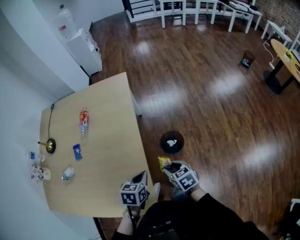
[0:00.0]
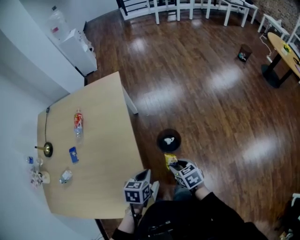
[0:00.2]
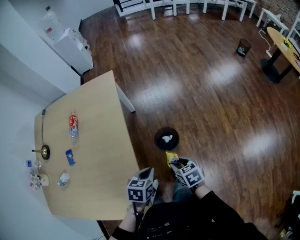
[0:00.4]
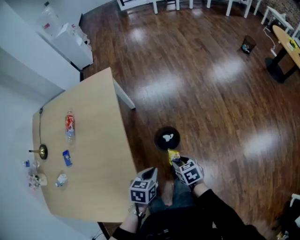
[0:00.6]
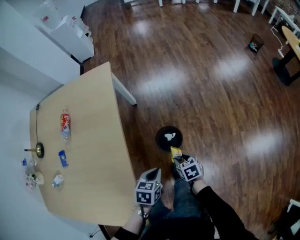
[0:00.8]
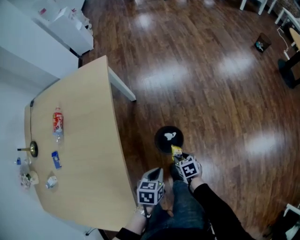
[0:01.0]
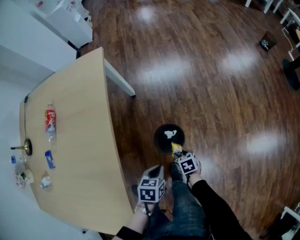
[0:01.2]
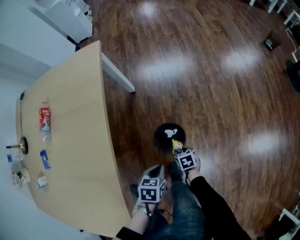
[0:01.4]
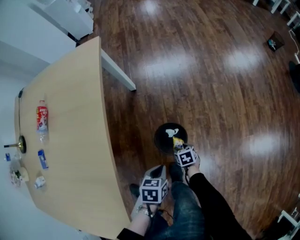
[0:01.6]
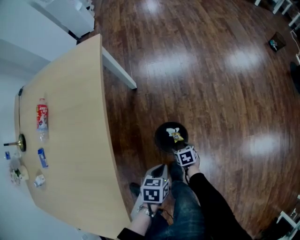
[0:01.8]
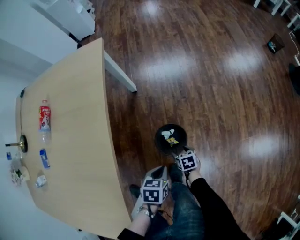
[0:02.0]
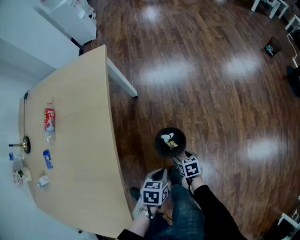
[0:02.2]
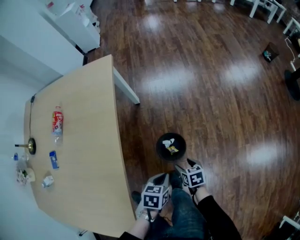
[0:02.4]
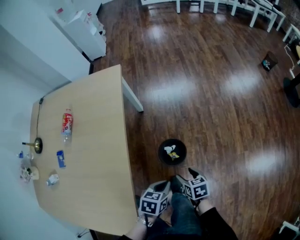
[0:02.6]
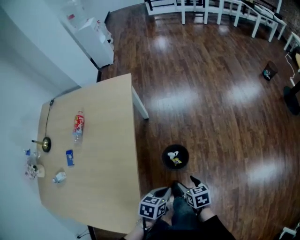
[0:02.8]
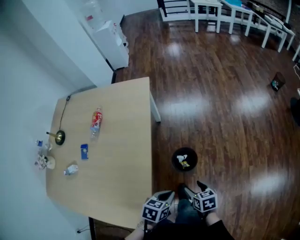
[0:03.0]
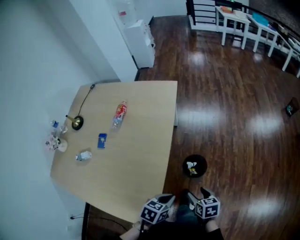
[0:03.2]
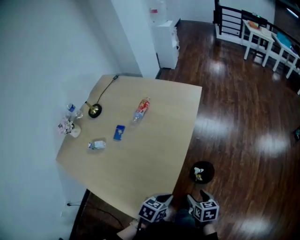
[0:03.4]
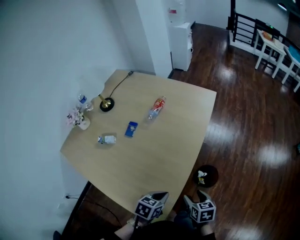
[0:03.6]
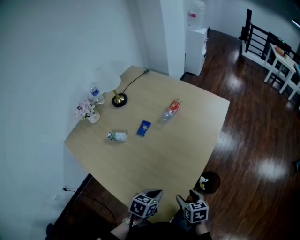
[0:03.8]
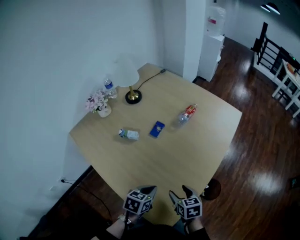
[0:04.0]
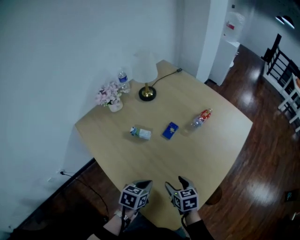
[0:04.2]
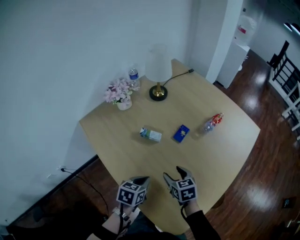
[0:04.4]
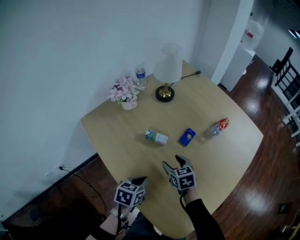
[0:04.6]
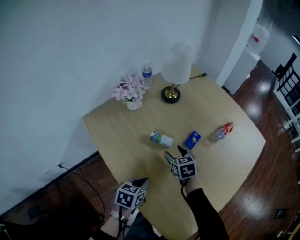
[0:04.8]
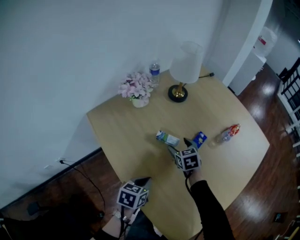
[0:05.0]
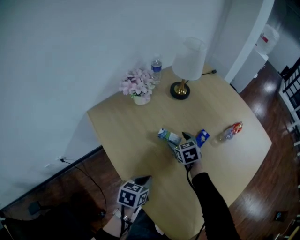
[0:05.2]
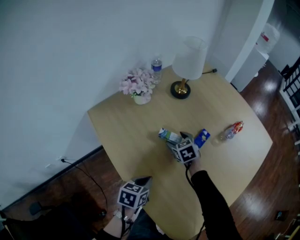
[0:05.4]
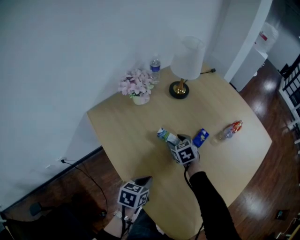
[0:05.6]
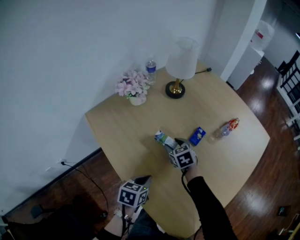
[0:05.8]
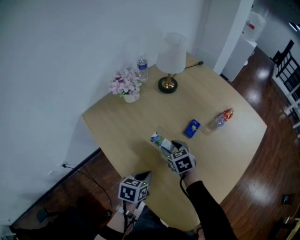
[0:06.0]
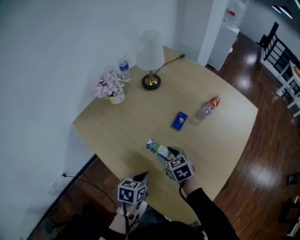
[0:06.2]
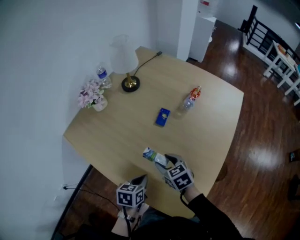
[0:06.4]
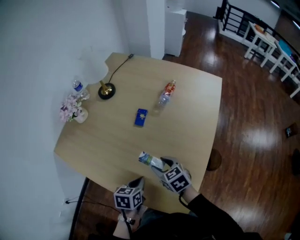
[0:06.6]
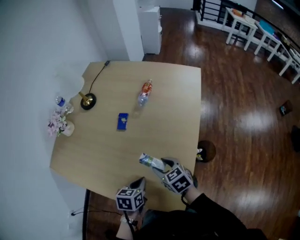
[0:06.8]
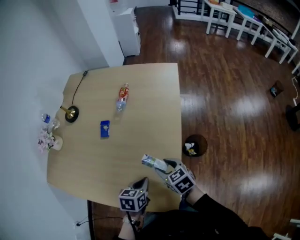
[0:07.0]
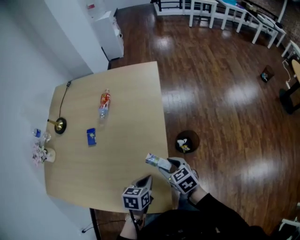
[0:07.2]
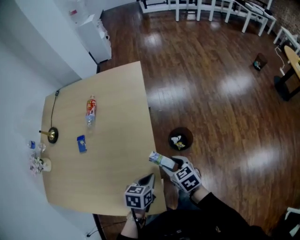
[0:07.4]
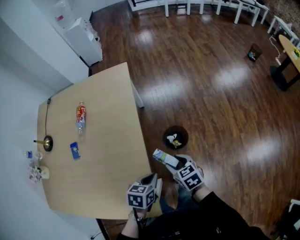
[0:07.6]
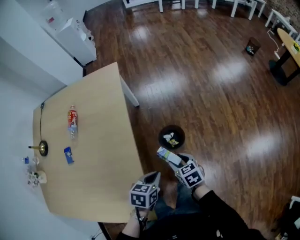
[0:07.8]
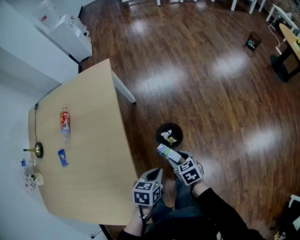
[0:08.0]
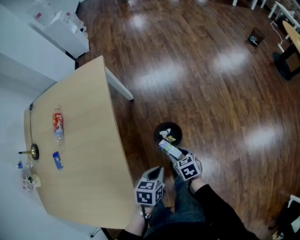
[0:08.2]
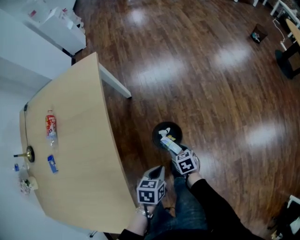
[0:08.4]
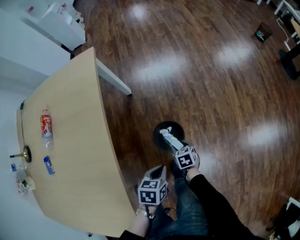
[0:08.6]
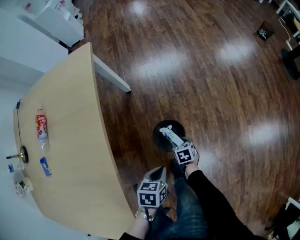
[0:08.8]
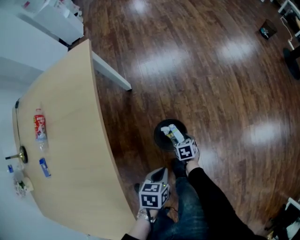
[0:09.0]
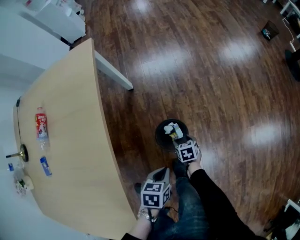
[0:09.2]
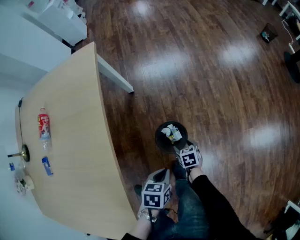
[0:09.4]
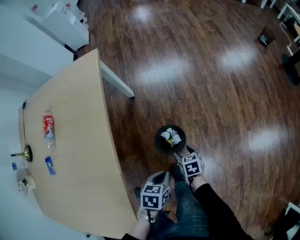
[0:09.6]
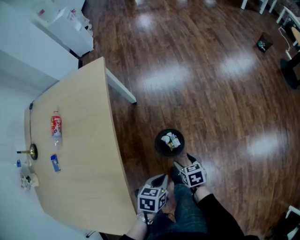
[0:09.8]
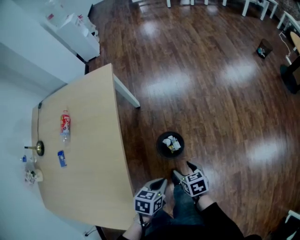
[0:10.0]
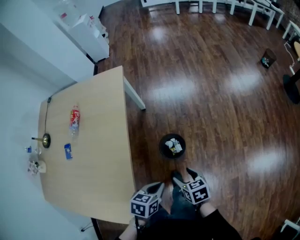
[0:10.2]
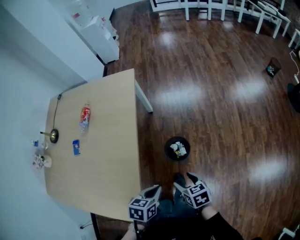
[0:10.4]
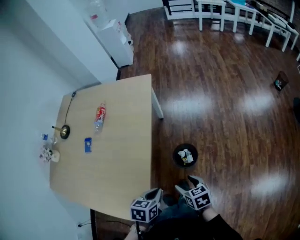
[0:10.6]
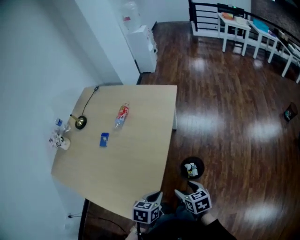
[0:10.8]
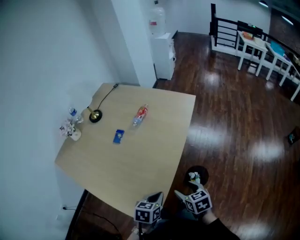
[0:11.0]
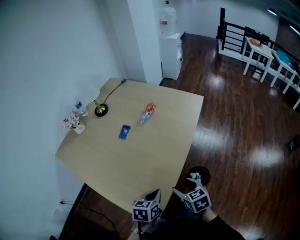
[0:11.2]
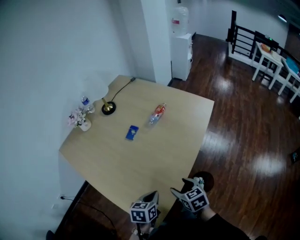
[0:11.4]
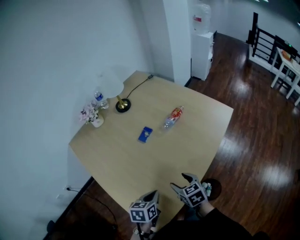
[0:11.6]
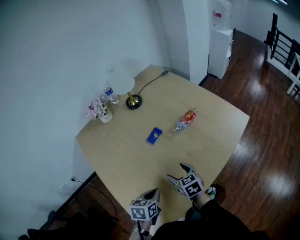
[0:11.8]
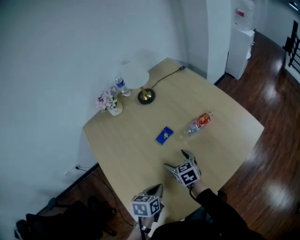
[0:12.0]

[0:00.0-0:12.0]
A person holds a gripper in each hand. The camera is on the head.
0:00.0 to 0:01.6: The left gripper travels downward, to the right and forward by some 30 cm. The right gripper moves downward, approximately 40 cm, and swivels roughly 20 degrees.
0:01.6 to 0:03.0: The right gripper travels upward by some 35 cm; the left gripper heads upward and backward, covering about 25 cm.
0:03.0 to 0:04.4: The two grippers travel together, some 50 cm. The right gripper rotates around the line of its fingers by approximately 50 degrees, counterclockwise from behind. Meanwhile the left gripper turns by roughly 50 degrees.
0:04.4 to 0:06.0: The left gripper goes approximately 5 cm to the left. The right gripper is displaced forward and to the left by about 15 cm.
0:06.0 to 0:07.6: The pair of grippers is taken about 50 cm. The right gripper rolls clockwise, seen from behind, by roughly 50 degrees, while the left gripper turns by approximately 50 degrees.
0:07.6 to 0:09.0: The left gripper is displaced downward, to the right and forward by some 25 cm. The right gripper travels downward by about 40 cm, and changes its angle by about 30 degrees.
0:09.0 to 0:10.4: The left gripper heads upward and backward, covering some 25 cm; the right gripper is displaced upward and backward by approximately 40 cm, and rotates some 20 degrees.
0:10.4 to 0:12.0: The right gripper shifts by about 50 cm, and rolls counterclockwise, seen from behind, by roughly 50 degrees; the left gripper moves approximately 35 cm, and changes its angle by approximately 60 degrees.

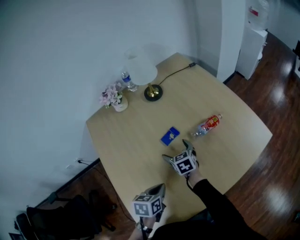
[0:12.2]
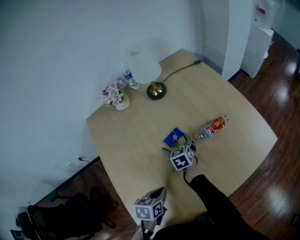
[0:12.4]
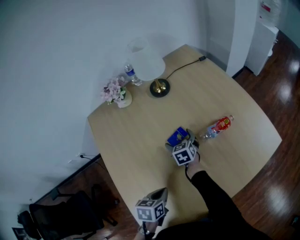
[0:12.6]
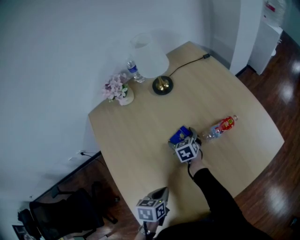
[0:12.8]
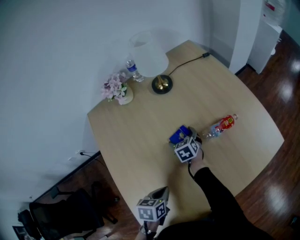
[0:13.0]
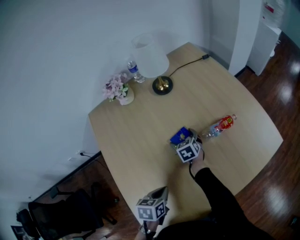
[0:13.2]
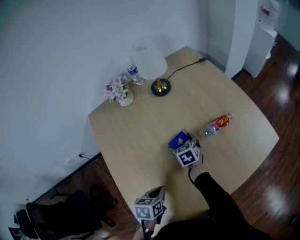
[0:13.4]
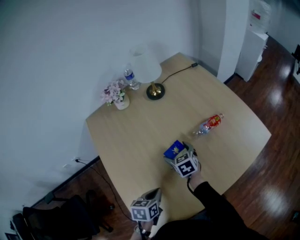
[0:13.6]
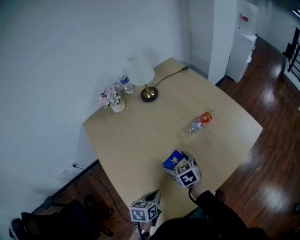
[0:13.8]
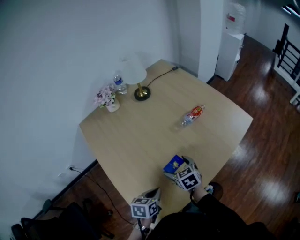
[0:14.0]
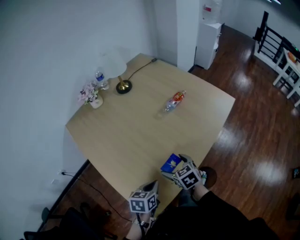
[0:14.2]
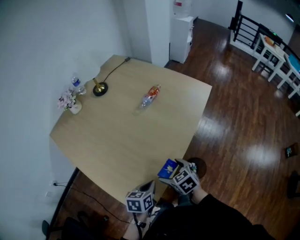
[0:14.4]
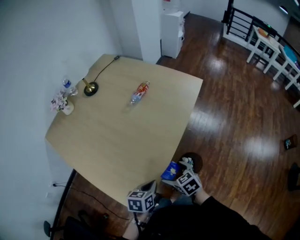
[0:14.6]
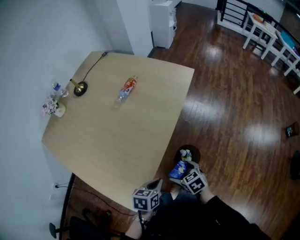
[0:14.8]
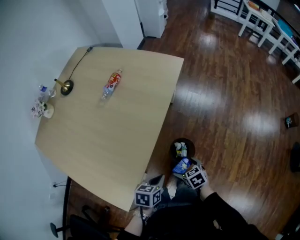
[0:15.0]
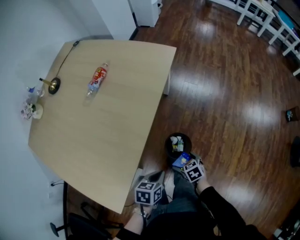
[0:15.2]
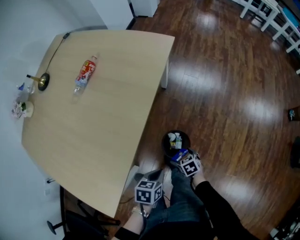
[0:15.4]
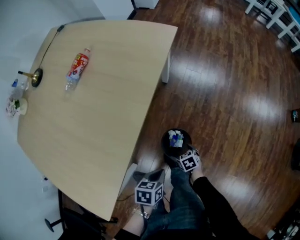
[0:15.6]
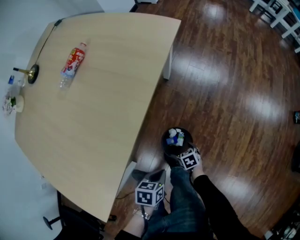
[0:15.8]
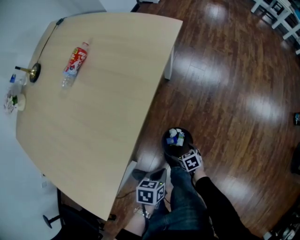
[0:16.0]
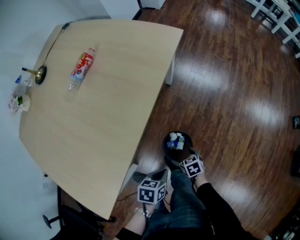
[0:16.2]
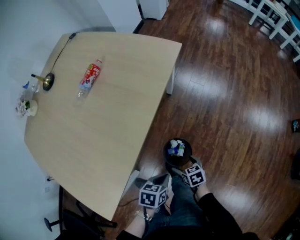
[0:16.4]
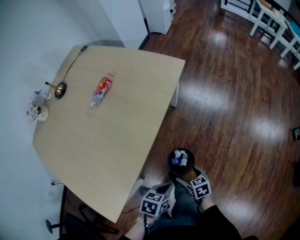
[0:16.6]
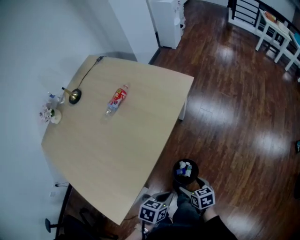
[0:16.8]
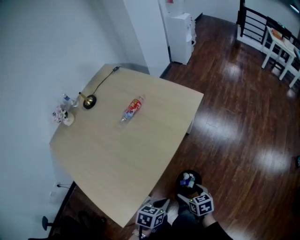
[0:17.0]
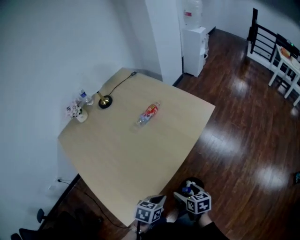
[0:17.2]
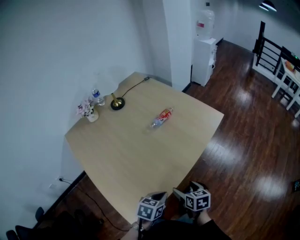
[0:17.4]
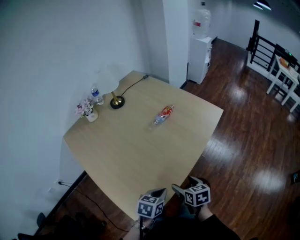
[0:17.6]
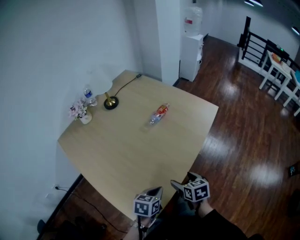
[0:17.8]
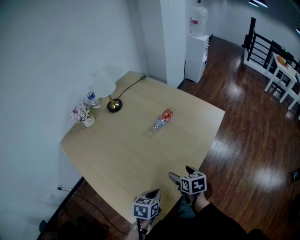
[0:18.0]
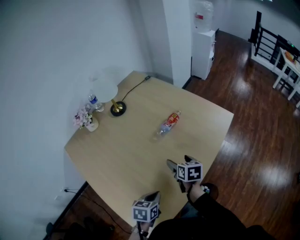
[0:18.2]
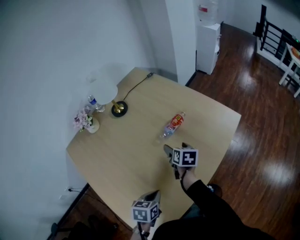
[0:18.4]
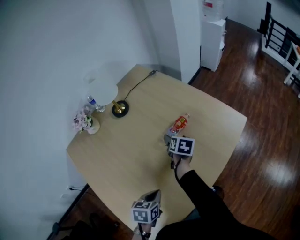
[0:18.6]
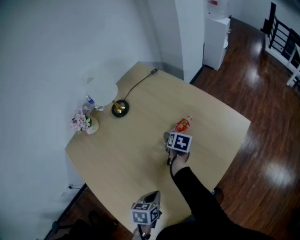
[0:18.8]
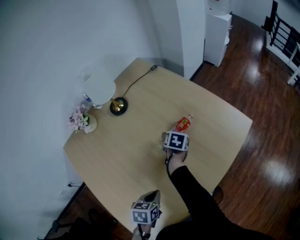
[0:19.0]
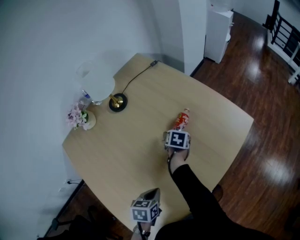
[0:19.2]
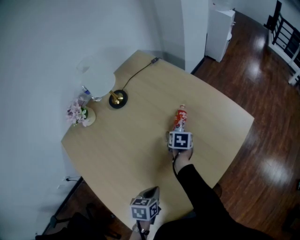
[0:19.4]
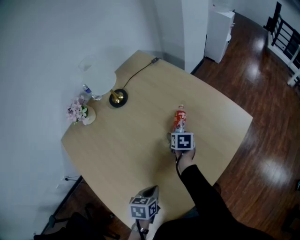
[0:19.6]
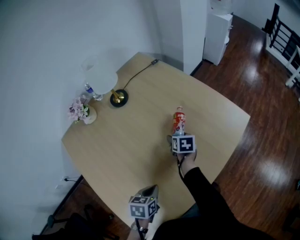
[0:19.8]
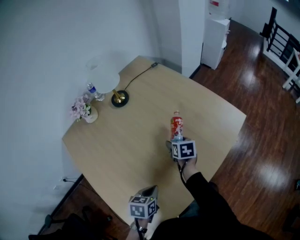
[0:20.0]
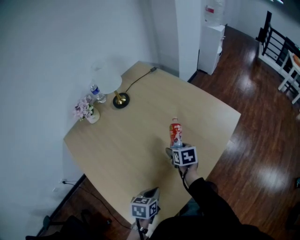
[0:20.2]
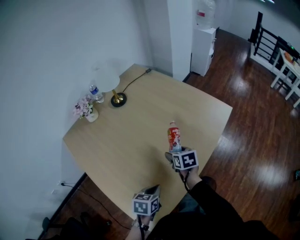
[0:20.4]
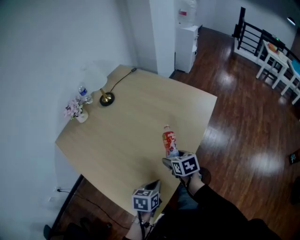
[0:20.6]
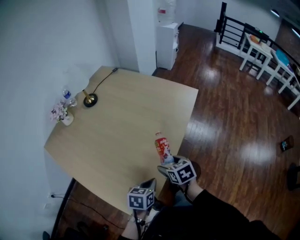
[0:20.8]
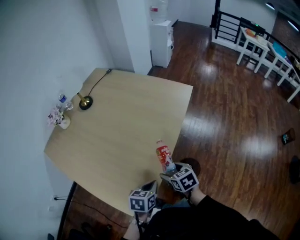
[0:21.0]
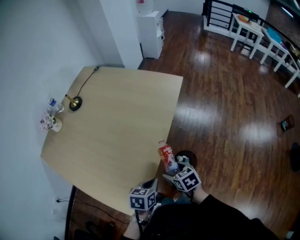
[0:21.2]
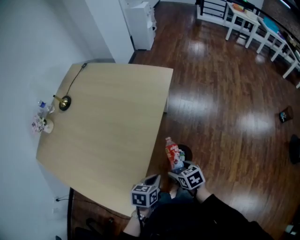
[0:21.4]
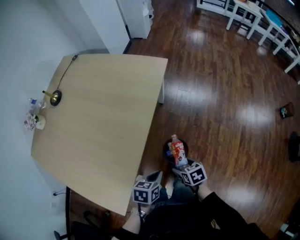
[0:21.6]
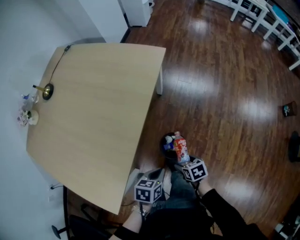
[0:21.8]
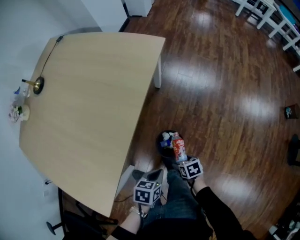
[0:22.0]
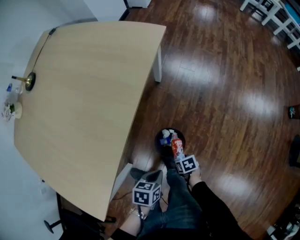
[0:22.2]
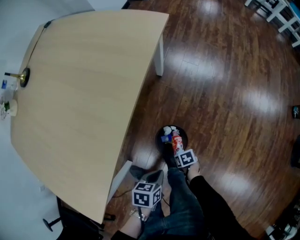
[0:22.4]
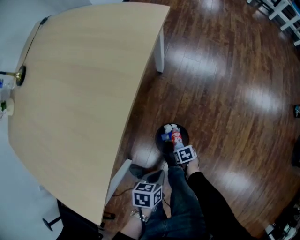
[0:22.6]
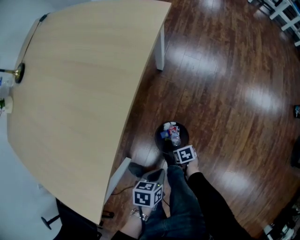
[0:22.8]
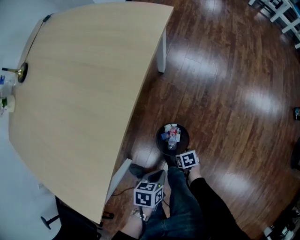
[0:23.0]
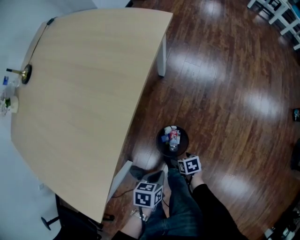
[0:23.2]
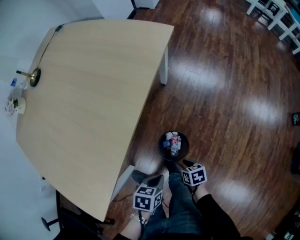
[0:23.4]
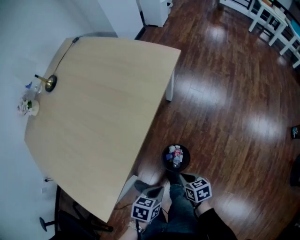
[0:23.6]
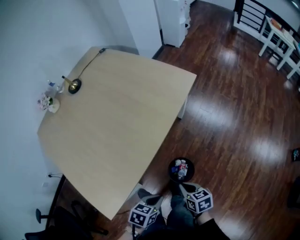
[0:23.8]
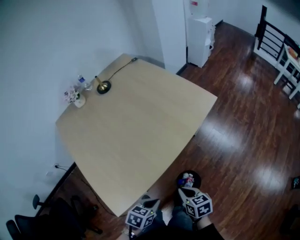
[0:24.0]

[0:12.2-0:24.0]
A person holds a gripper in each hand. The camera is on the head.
0:12.2 to 0:13.6: The left gripper ends up approximately 5 cm from where it was; the right gripper goes forward and returns, roughly 10 cm each way.
0:13.6 to 0:15.2: The right gripper ends up about 60 cm from where it was, and swivels roughly 40 degrees. The left gripper ends up some 40 cm from where it was, and rotates approximately 40 degrees.
0:15.2 to 0:16.6: The right gripper reaches roughly 20 cm downward, then returns. Meanwhile the left gripper moves to the right, roughly 5 cm, and travels downward and back again, about 10 cm each way.
0:16.6 to 0:18.2: The left gripper shifts roughly 30 cm to the left, and changes its angle by roughly 30 degrees. The right gripper moves to the left, forward and upward, approximately 40 cm.
0:18.2 to 0:19.6: The right gripper travels forward and downward by approximately 20 cm. The left gripper shifts about 10 cm forward.
0:19.6 to 0:21.0: The left gripper moves backward and to the right, about 25 cm, and rotates roughly 20 degrees. Meanwhile the right gripper moves backward, some 40 cm.
0:21.0 to 0:22.6: The left gripper heads downward, covering some 25 cm, and changes its angle by roughly 20 degrees. Meanwhile the right gripper heads downward, covering some 40 cm, and swivels about 40 degrees.
0:22.6 to 0:24.0: The right gripper shifts some 40 cm upward, turns by approximately 40 degrees, and closes up. The left gripper shifts approximately 20 cm upward.
